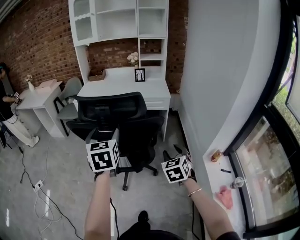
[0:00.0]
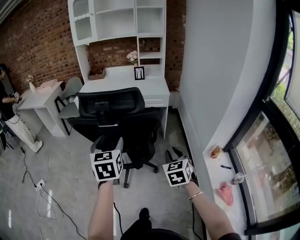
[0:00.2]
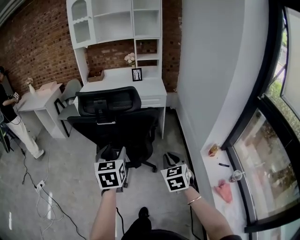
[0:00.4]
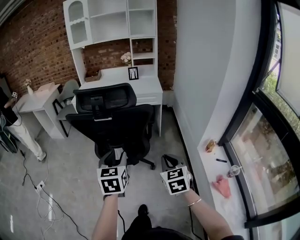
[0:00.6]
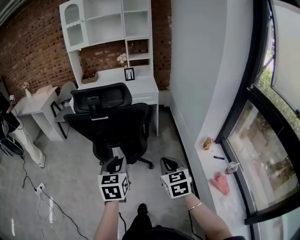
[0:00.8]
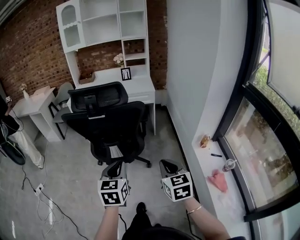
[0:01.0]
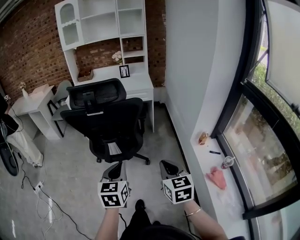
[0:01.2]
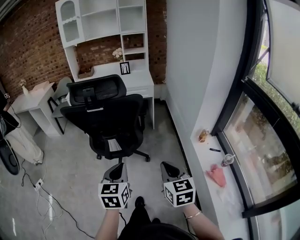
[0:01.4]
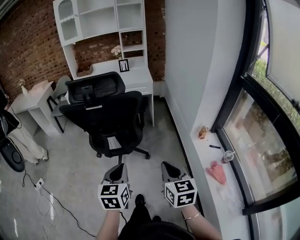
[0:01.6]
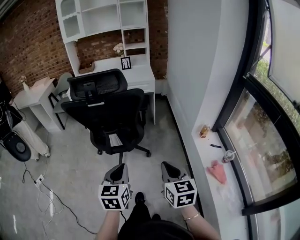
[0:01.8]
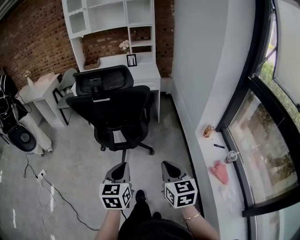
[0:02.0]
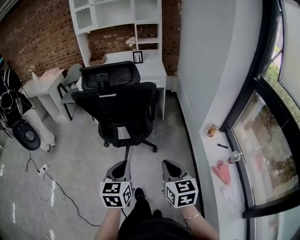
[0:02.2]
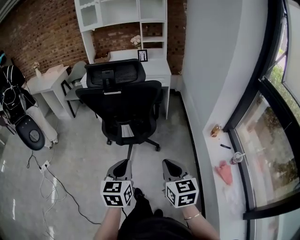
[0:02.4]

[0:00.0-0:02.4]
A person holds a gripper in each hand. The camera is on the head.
0:00.0 to 0:01.2: The right gripper moves backward, roughly 25 cm, swivels approximately 30 degrees, and closes up. The left gripper moves backward, downward and to the right, roughly 30 cm, and closes its fingers.
0:01.2 to 0:02.4: The right gripper heads to the left and backward, covering approximately 5 cm. Meanwhile the left gripper heads backward, covering about 5 cm.

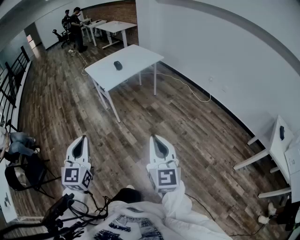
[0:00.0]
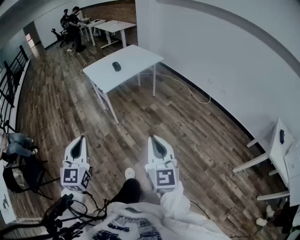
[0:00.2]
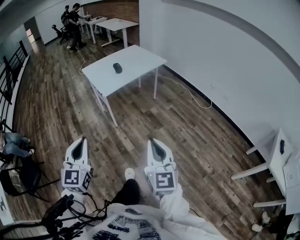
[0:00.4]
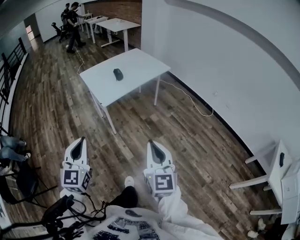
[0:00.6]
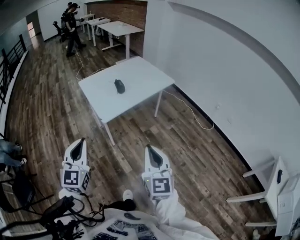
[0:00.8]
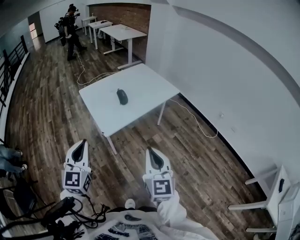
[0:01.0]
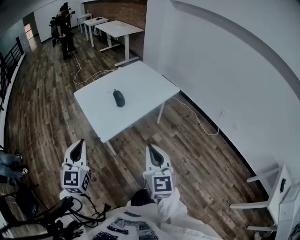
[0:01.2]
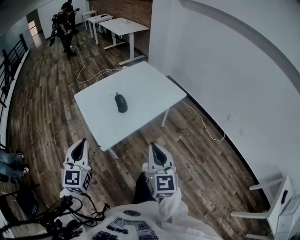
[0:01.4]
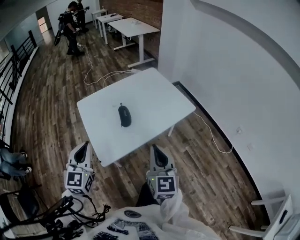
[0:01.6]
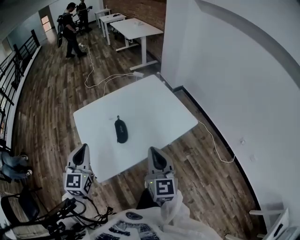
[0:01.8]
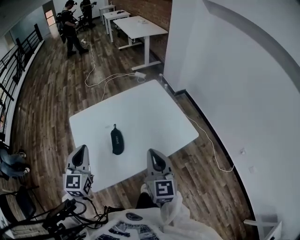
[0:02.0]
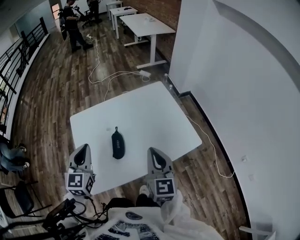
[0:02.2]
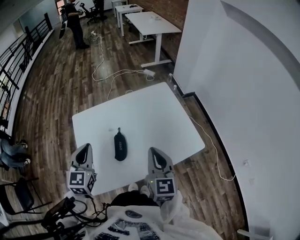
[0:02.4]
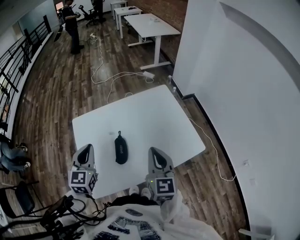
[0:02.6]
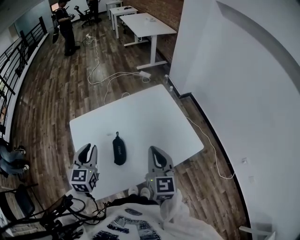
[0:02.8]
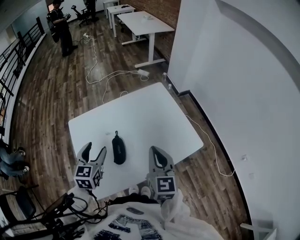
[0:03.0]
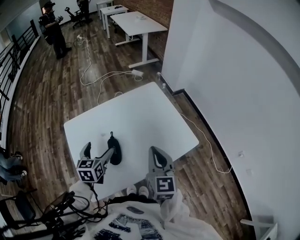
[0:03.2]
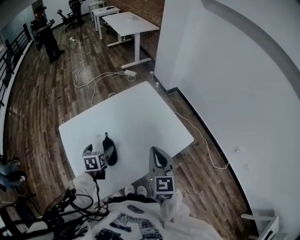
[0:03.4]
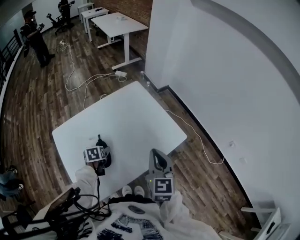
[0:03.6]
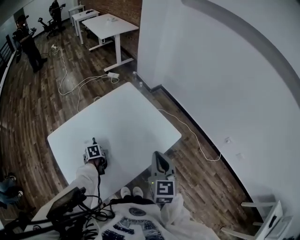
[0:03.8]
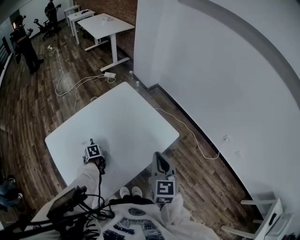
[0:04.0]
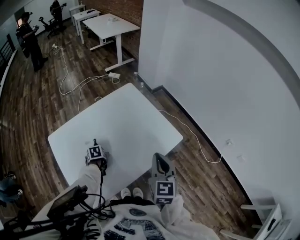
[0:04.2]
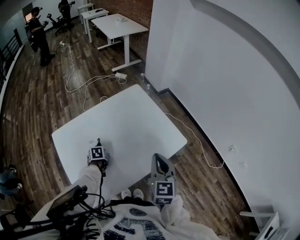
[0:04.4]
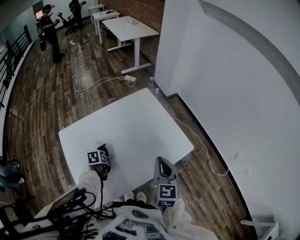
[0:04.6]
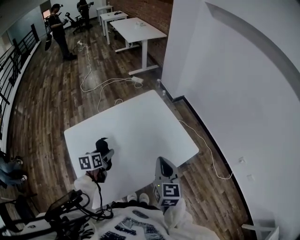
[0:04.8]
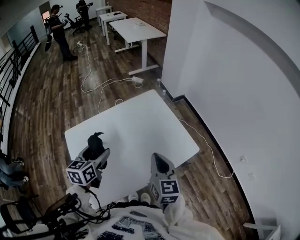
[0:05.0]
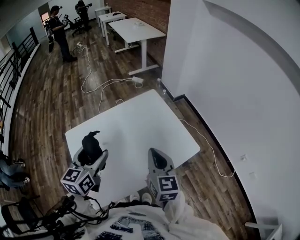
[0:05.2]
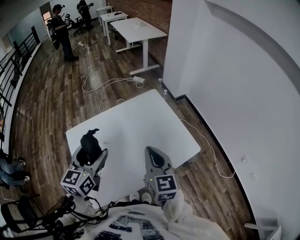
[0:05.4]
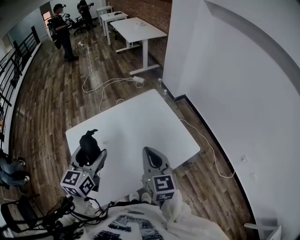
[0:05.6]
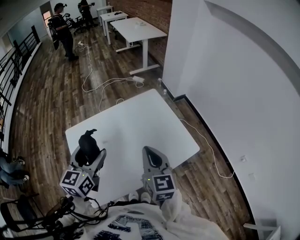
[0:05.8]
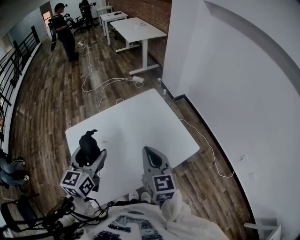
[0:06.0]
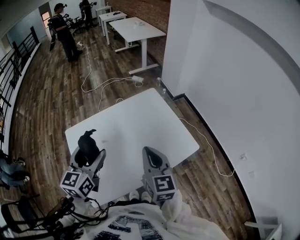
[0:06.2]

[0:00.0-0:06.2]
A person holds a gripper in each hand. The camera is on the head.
0:00.0 to 0:01.6: The two grippers travel together, forward, about 70 cm.
0:01.6 to 0:03.2: The right gripper travels forward by approximately 25 cm. The left gripper is displaced forward and downward by approximately 30 cm, swivels approximately 30 degrees, and opens.
0:03.2 to 0:04.6: The left gripper shifts some 20 cm downward, and tips its fingers downward by approximately 30 degrees.
0:04.6 to 0:06.2: The right gripper moves to the left and upward, roughly 10 cm, while the left gripper moves upward, roughly 35 cm, and tilts its fingers some 50 degrees upward.

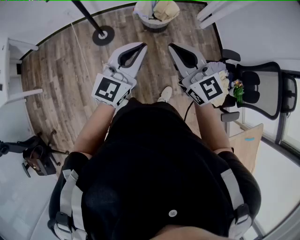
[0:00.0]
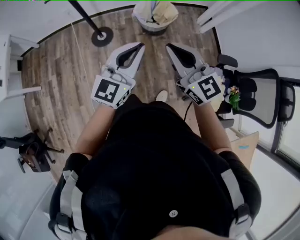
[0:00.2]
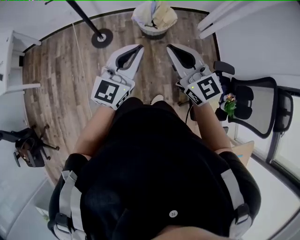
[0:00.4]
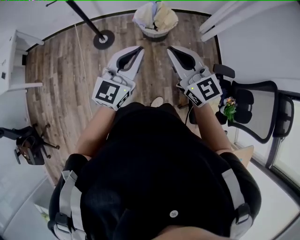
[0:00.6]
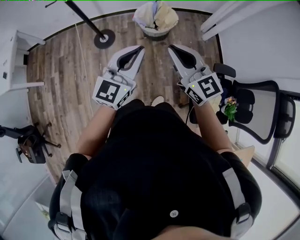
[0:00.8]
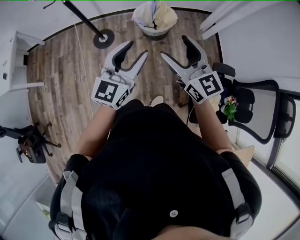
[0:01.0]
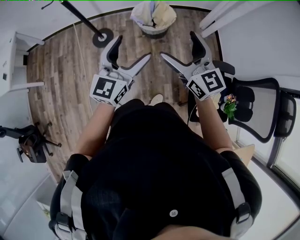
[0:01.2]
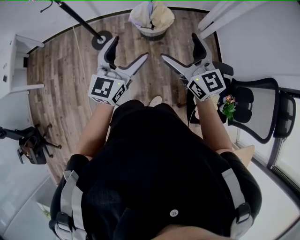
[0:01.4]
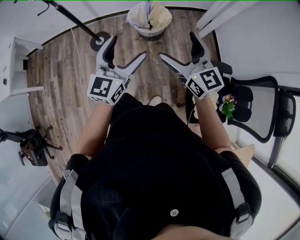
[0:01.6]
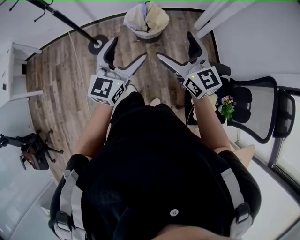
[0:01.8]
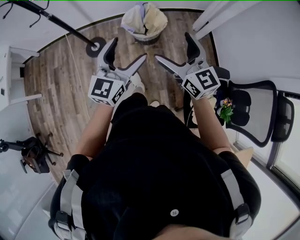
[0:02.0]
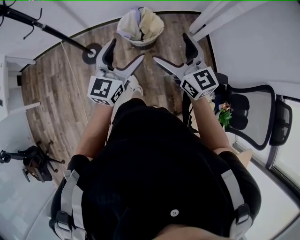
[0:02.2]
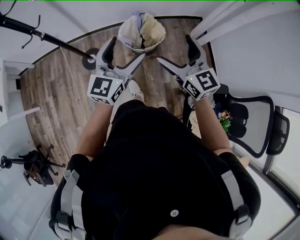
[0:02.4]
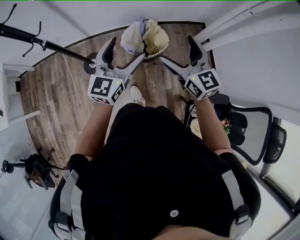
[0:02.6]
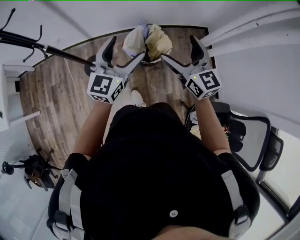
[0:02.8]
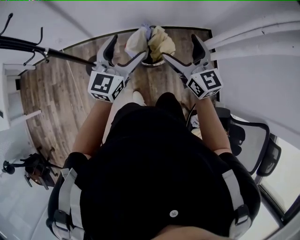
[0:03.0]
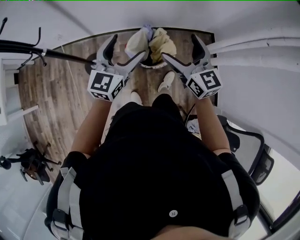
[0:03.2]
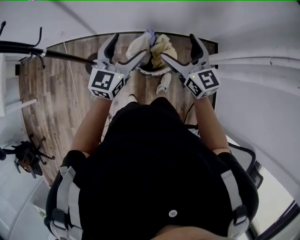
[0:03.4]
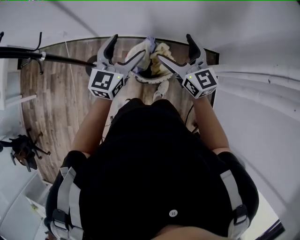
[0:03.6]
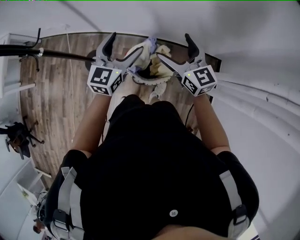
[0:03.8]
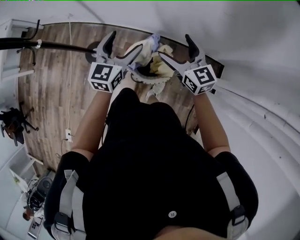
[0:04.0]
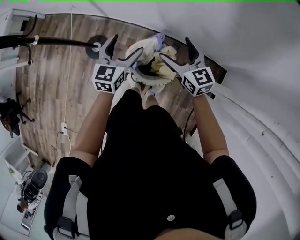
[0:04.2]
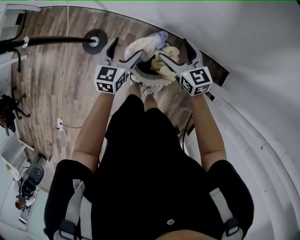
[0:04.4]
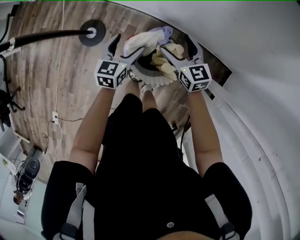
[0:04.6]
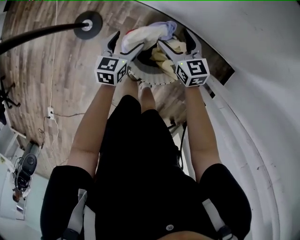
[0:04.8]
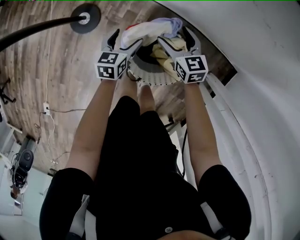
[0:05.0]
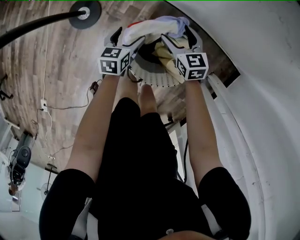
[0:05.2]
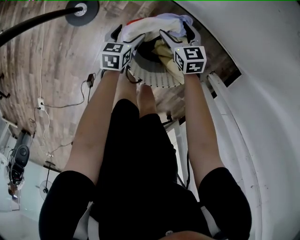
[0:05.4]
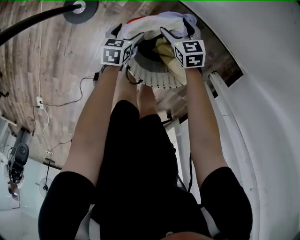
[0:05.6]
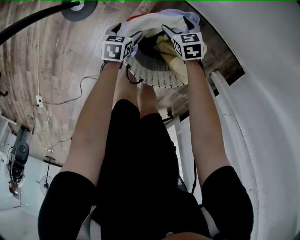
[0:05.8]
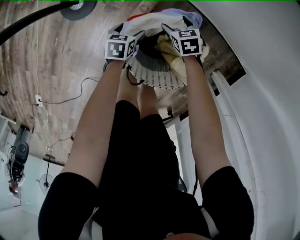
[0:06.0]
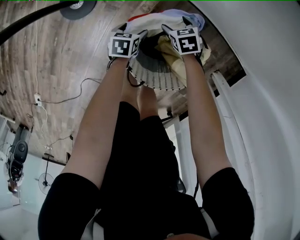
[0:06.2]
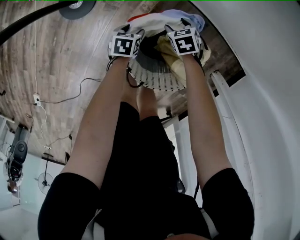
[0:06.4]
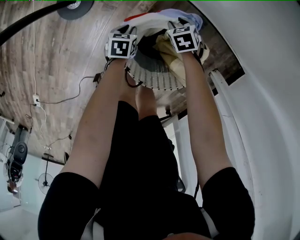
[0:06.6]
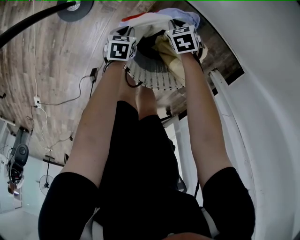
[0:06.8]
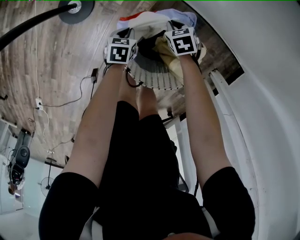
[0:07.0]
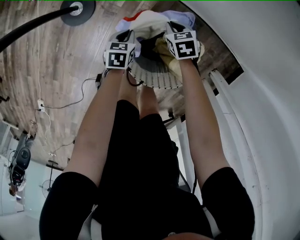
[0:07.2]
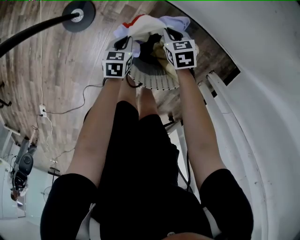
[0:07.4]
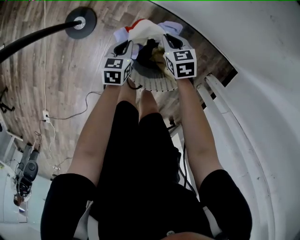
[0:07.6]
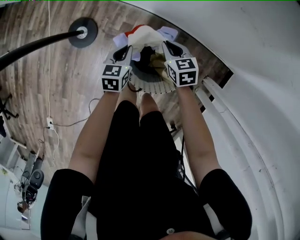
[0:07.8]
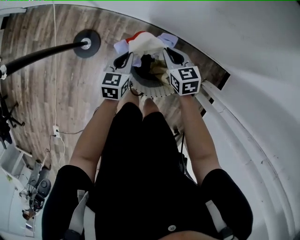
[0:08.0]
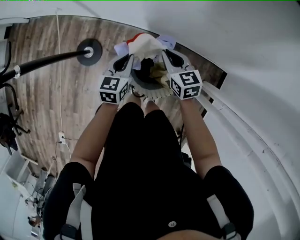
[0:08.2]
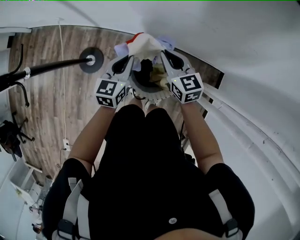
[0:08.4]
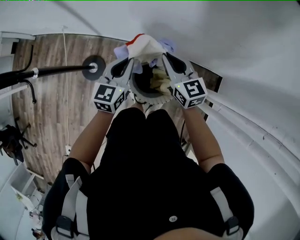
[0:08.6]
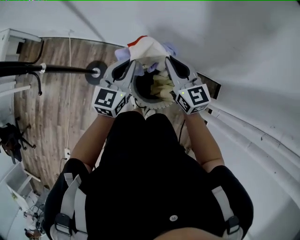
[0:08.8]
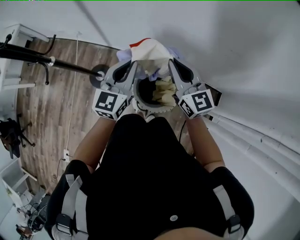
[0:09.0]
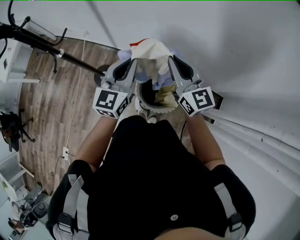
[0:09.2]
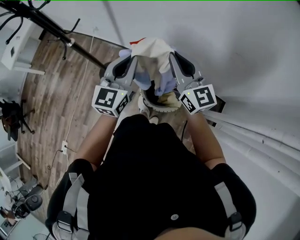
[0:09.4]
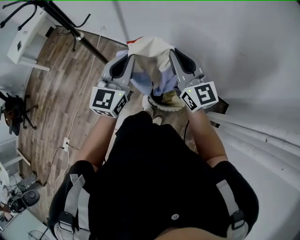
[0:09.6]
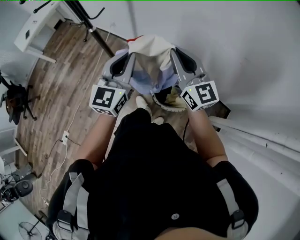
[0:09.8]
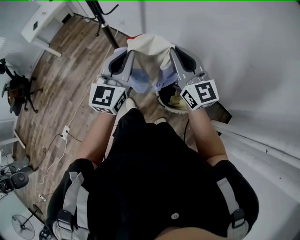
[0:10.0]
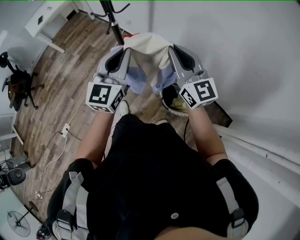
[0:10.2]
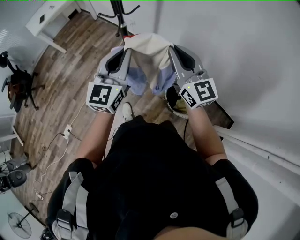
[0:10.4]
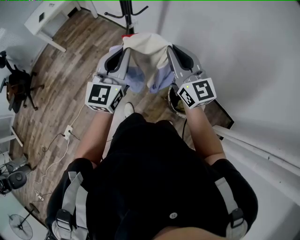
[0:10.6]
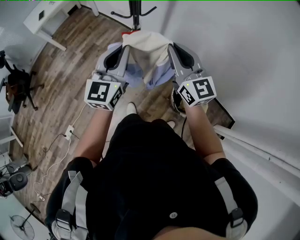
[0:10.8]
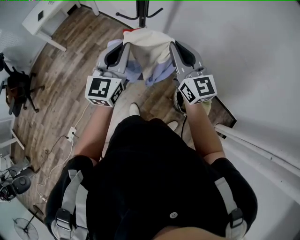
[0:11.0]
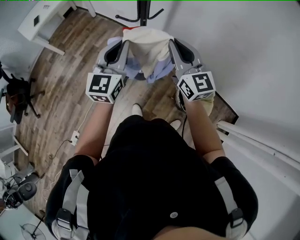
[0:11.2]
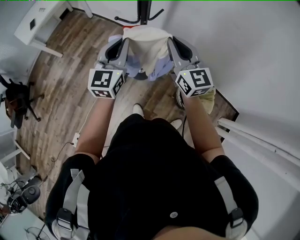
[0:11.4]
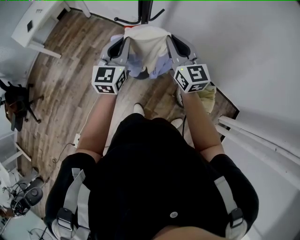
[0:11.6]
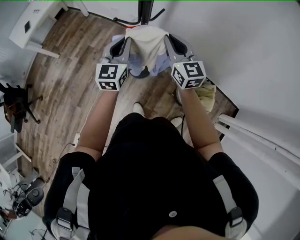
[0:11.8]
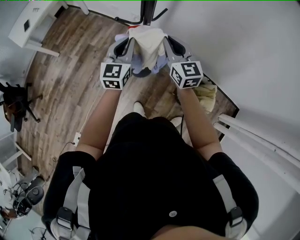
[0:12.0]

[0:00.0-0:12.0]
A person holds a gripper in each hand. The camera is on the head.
0:00.0 to 0:01.6: Both grippers move to the right, about 20 cm. The right gripper opens its fingers, while the left gripper opens.
0:01.6 to 0:03.0: The two grippers travel together, forward, roughly 40 cm.
0:03.0 to 0:04.4: The right gripper moves roughly 40 cm, and changes its angle by roughly 40 degrees. Meanwhile the left gripper shifts by roughly 35 cm, and rotates about 40 degrees.
0:04.4 to 0:06.0: The grippers both shift downward by about 50 cm. The right gripper tilts its fingers approximately 40 degrees downward; the left gripper tilts its fingers approximately 30 degrees downward.
0:06.0 to 0:07.6: Both grippers travel together upward, some 20 cm. The right gripper closes its fingers. Meanwhile the left gripper closes up.
0:07.6 to 0:09.0: Both grippers travel together upward, some 60 cm. The right gripper points its fingers some 50 degrees further upward. Meanwhile the left gripper tips its fingers upward by roughly 40 degrees.
0:09.0 to 0:10.4: The grippers both shift to the left by approximately 30 cm. The left gripper turns by approximately 30 degrees; the right gripper turns by approximately 20 degrees.
0:10.4 to 0:12.0: The right gripper heads forward, to the left and downward, covering approximately 30 cm, and swivels about 20 degrees, while the left gripper is displaced forward, downward and to the left by about 35 cm.

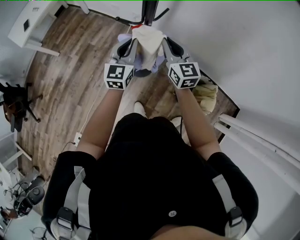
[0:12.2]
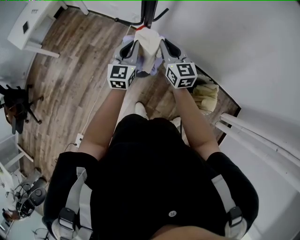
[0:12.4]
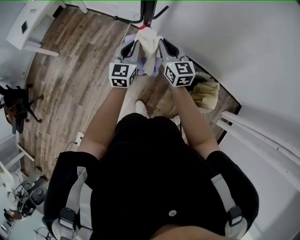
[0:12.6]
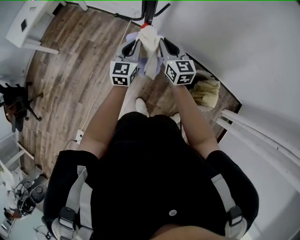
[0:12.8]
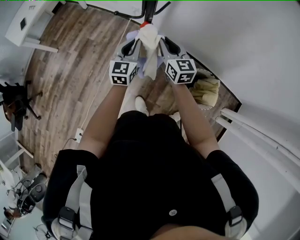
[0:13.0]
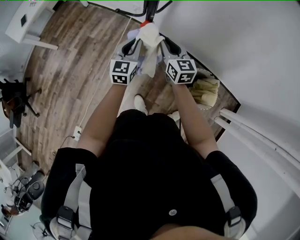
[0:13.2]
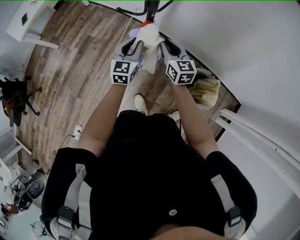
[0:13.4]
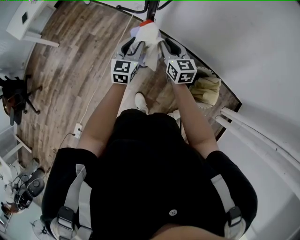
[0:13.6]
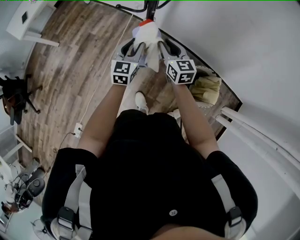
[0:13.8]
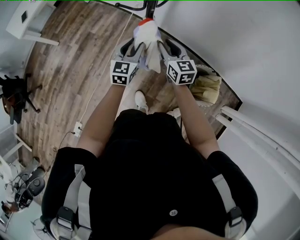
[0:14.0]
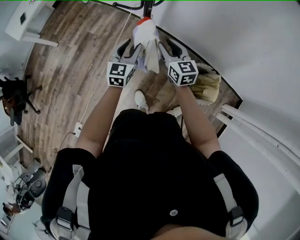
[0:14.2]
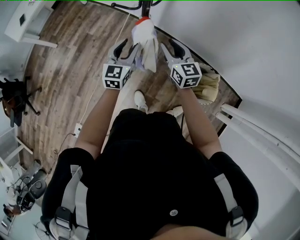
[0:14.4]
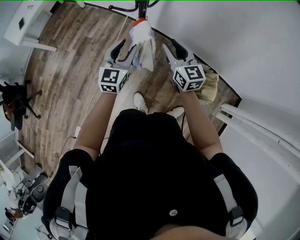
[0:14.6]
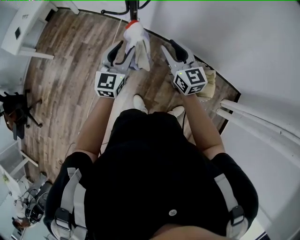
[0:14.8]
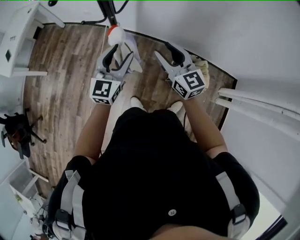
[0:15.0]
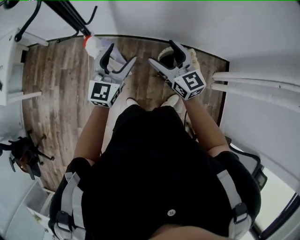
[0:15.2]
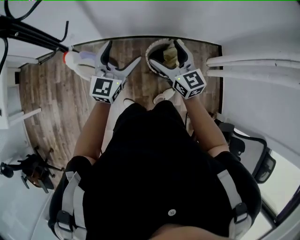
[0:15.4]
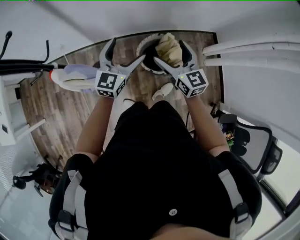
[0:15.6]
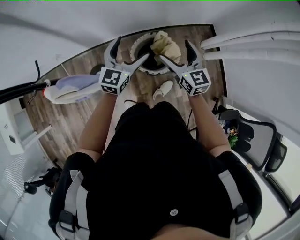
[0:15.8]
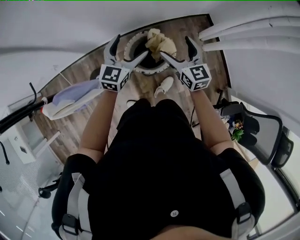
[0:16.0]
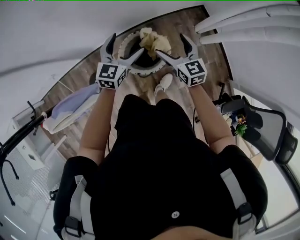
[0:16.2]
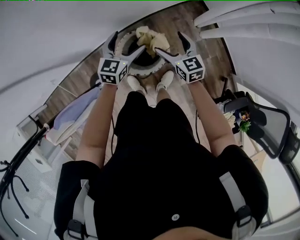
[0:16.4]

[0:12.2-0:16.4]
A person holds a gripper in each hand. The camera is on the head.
0:12.2 to 0:13.6: The two grippers go some 10 cm downward.
0:13.6 to 0:15.0: The two grippers go about 15 cm upward, backward and to the right. The left gripper turns by approximately 20 degrees.
0:15.0 to 0:16.4: The pair of grippers is taken approximately 70 cm. The right gripper turns by about 50 degrees, and opens up. The left gripper swivels approximately 50 degrees, and opens up.
